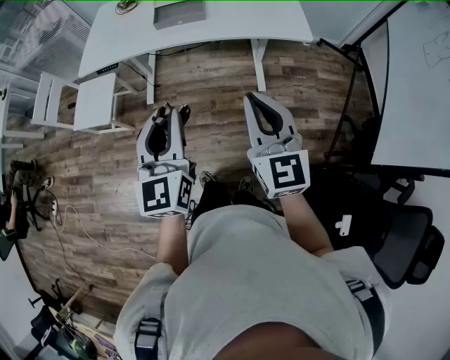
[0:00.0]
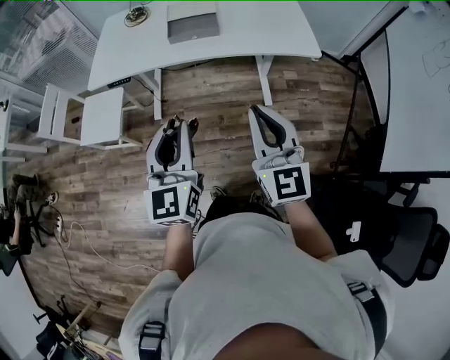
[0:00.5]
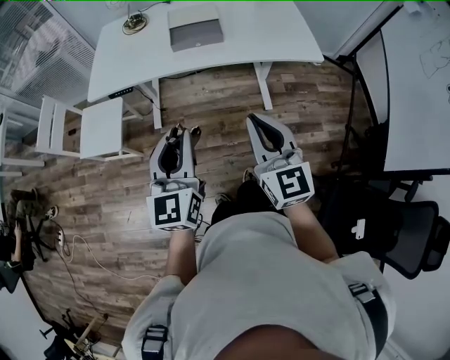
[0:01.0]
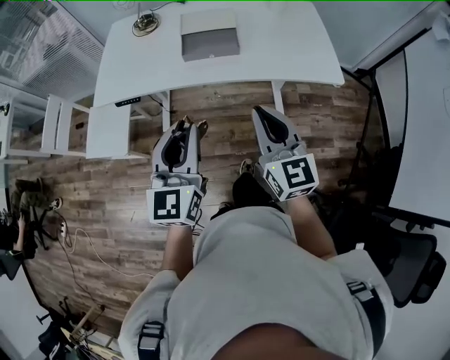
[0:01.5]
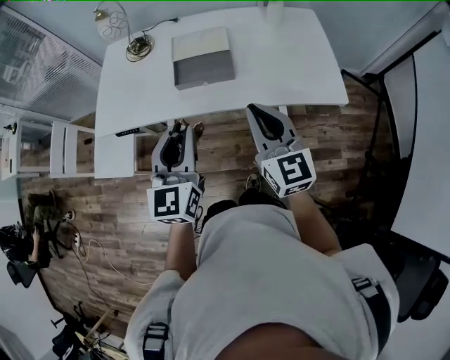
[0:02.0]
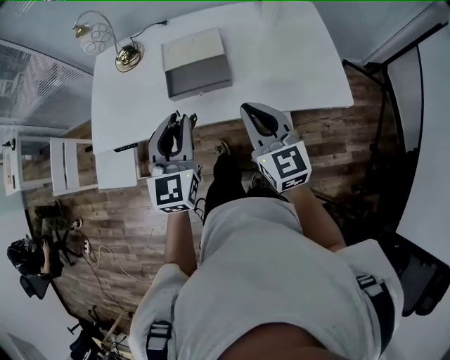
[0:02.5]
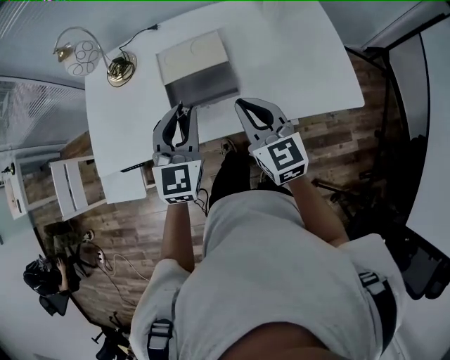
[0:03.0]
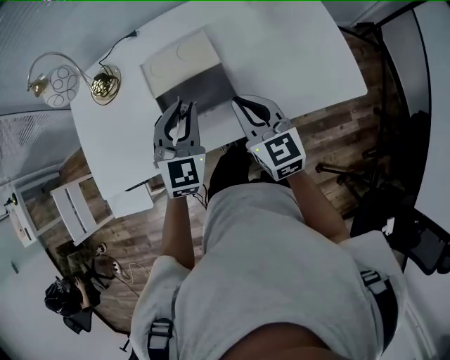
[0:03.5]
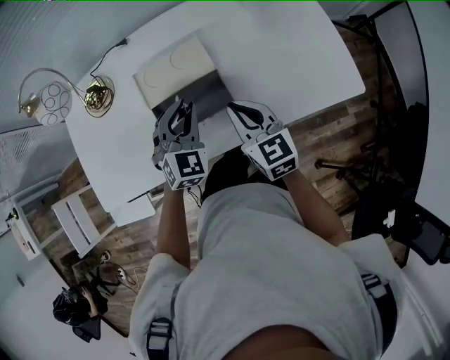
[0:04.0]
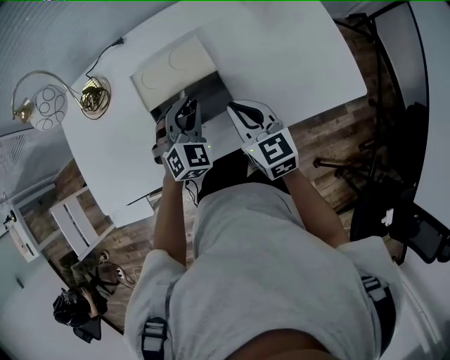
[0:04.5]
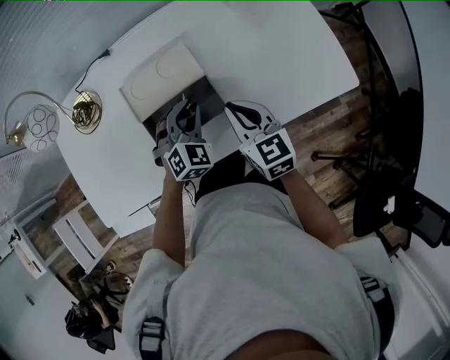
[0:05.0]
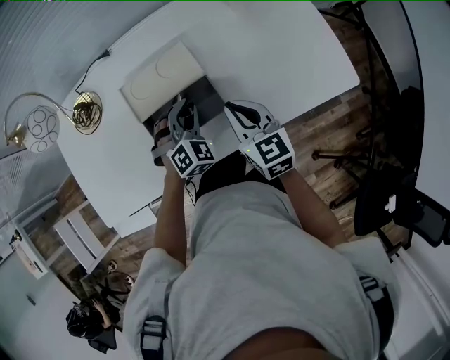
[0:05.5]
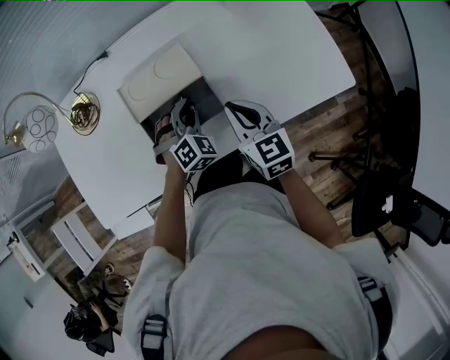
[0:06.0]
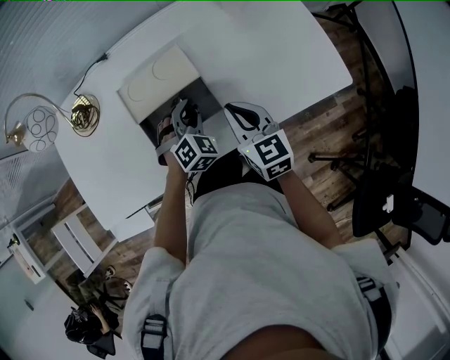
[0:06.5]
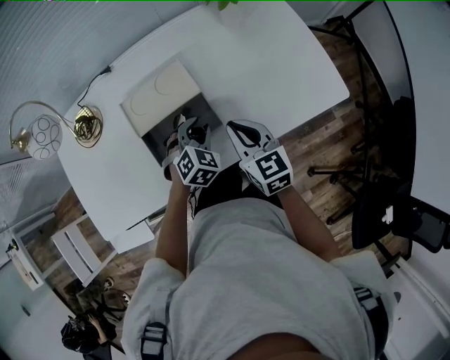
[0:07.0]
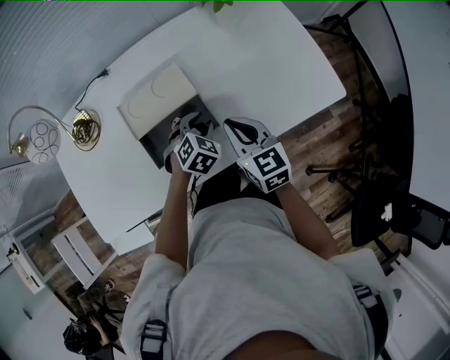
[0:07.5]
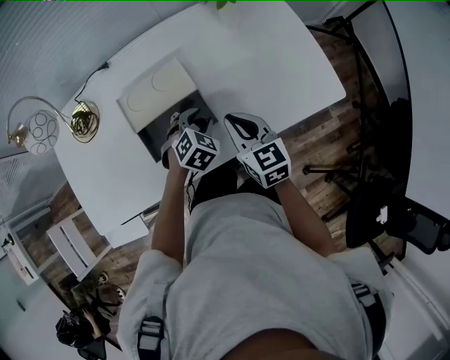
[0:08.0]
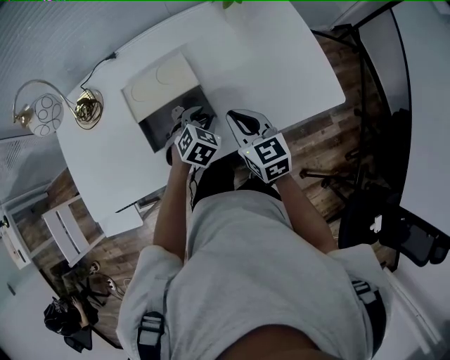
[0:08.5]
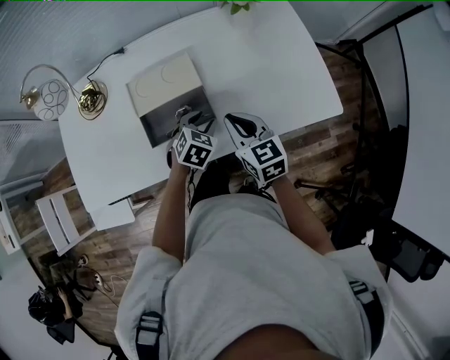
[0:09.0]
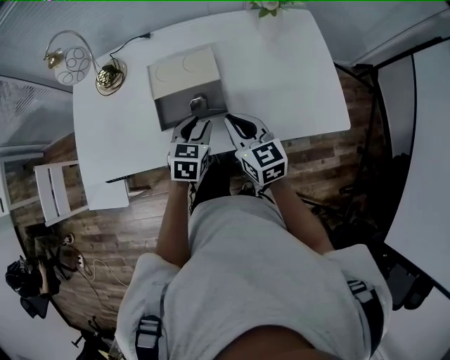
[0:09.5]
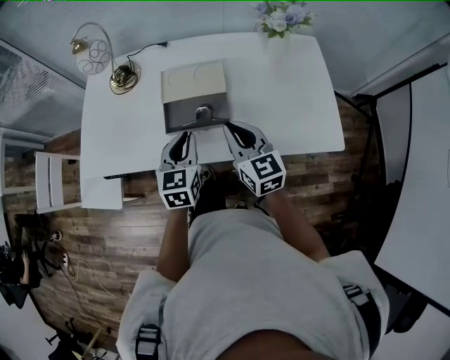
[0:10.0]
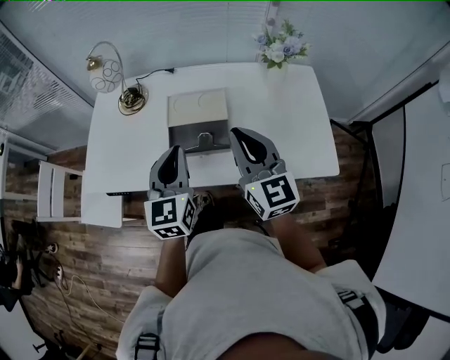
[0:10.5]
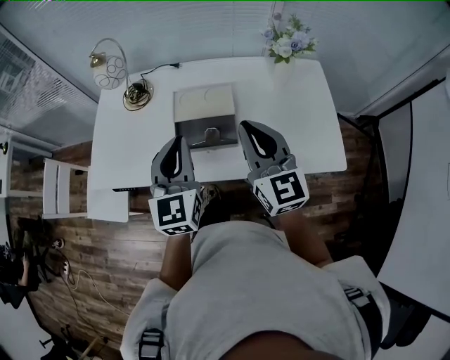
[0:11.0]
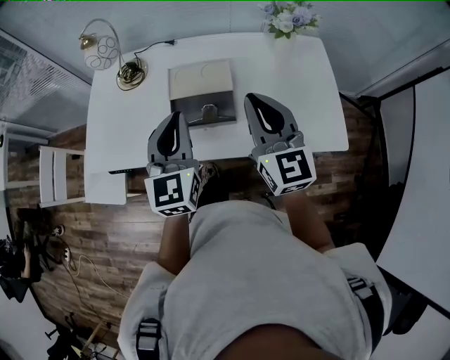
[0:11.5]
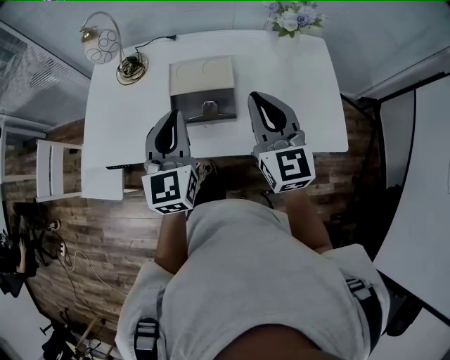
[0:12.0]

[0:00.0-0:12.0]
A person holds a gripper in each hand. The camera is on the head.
0:00.0 to 0:02.0: Both grippers move forward, about 30 cm.
0:02.0 to 0:04.0: Both grippers travel together forward and downward, approximately 30 cm. The left gripper changes its angle by approximately 50 degrees. The right gripper changes its angle by roughly 20 degrees.
0:04.0 to 0:06.0: The left gripper heads downward, covering approximately 10 cm, and turns by about 20 degrees.
0:06.0 to 0:08.0: The left gripper shifts about 5 cm to the right, and swivels about 20 degrees.
0:08.0 to 0:10.0: The left gripper heads upward, to the left and backward, covering approximately 20 cm, tips its fingers upward by some 30 degrees, and closes up; the right gripper moves upward, approximately 10 cm, and rotates approximately 20 degrees.
0:10.0 to 0:12.0: The grippers both shift upward by about 15 cm.

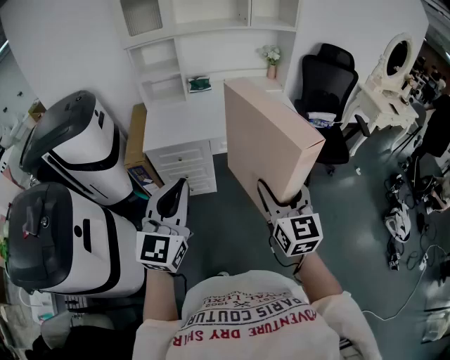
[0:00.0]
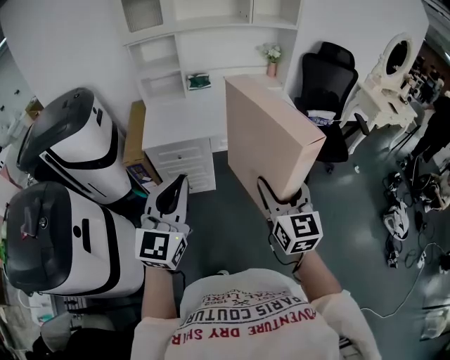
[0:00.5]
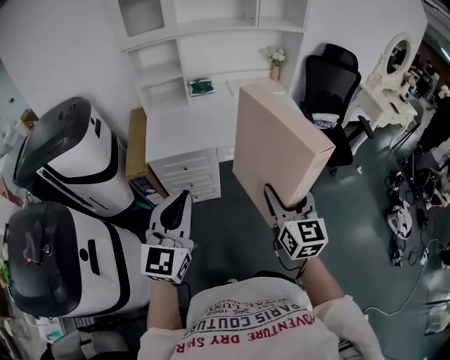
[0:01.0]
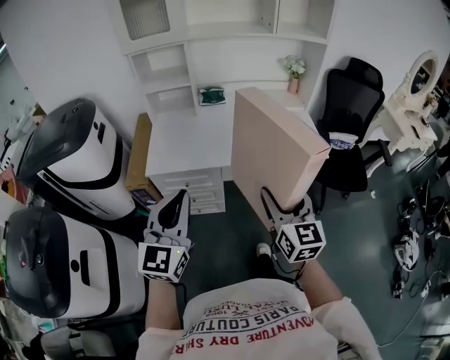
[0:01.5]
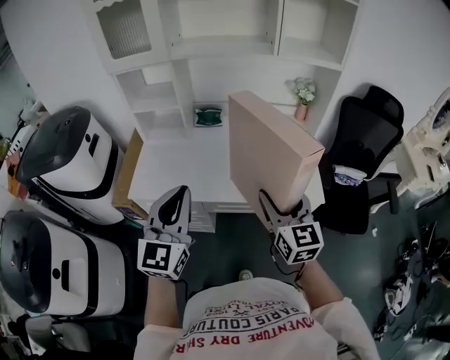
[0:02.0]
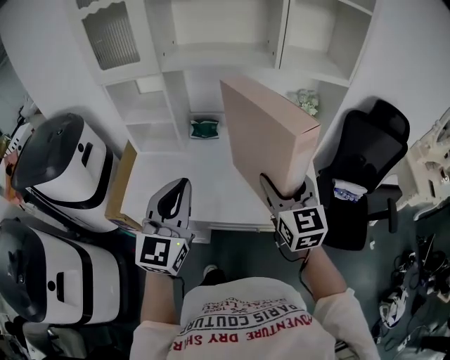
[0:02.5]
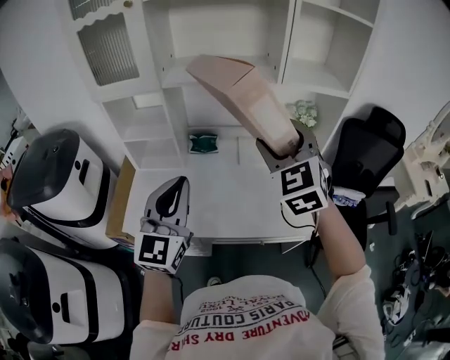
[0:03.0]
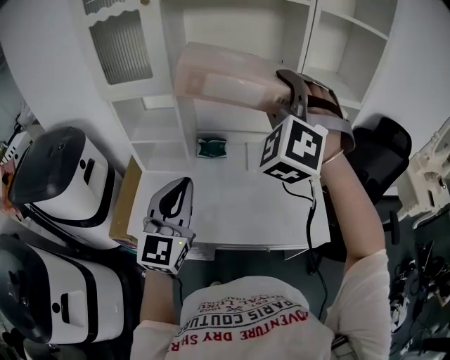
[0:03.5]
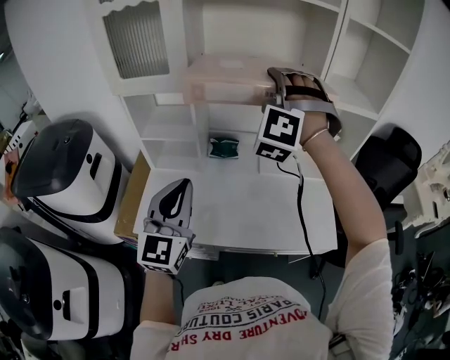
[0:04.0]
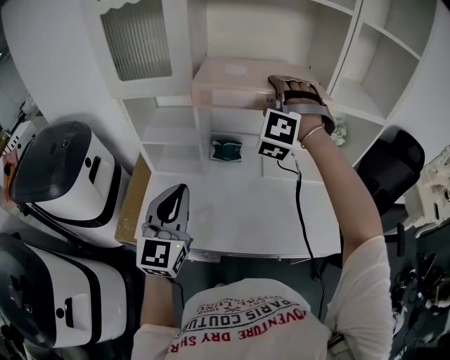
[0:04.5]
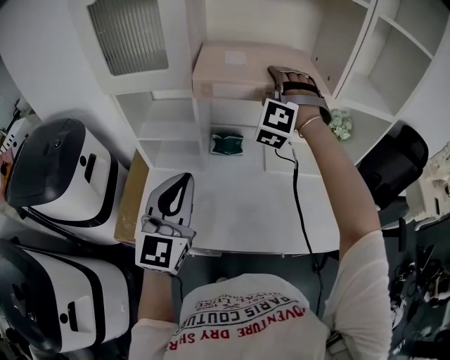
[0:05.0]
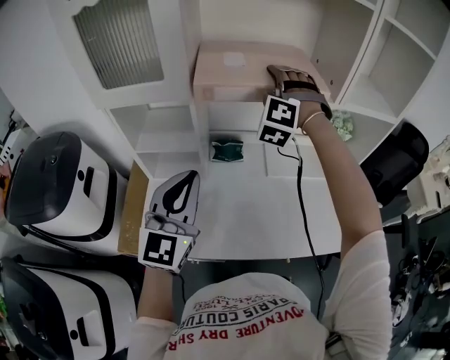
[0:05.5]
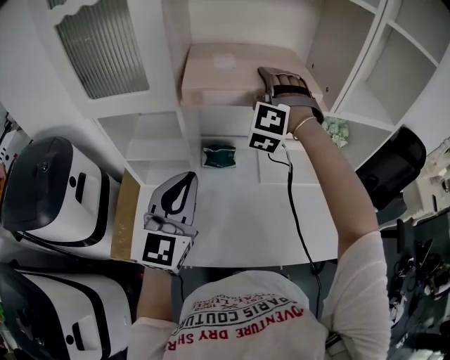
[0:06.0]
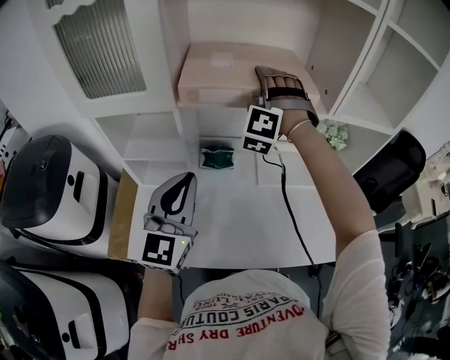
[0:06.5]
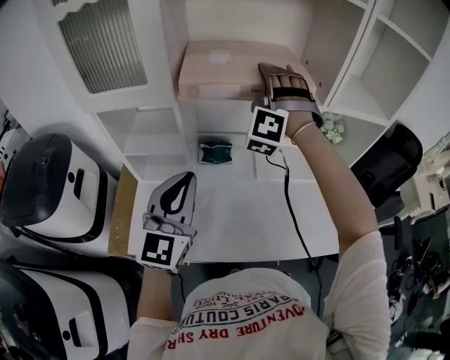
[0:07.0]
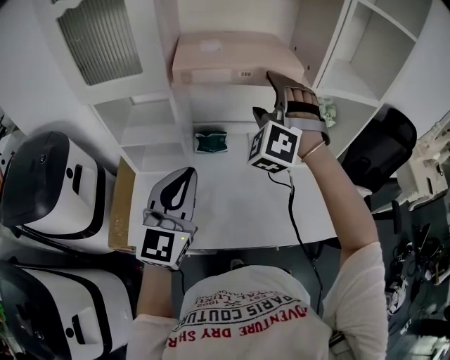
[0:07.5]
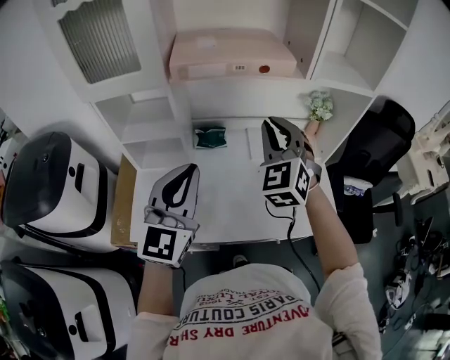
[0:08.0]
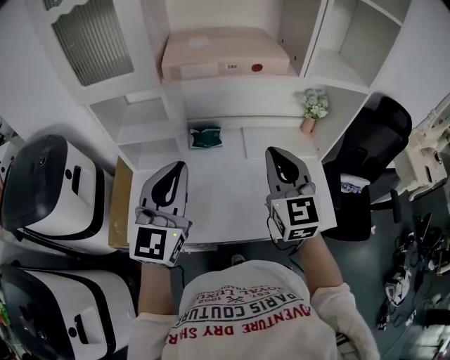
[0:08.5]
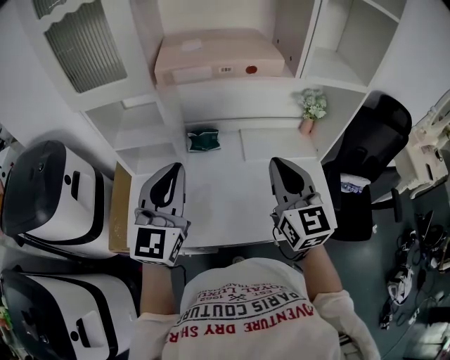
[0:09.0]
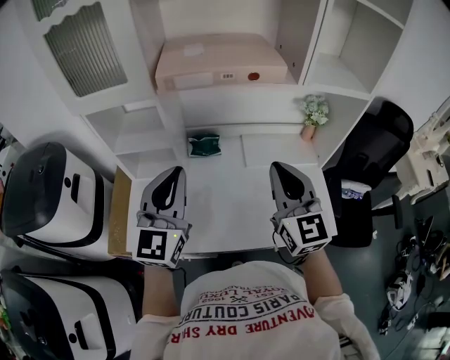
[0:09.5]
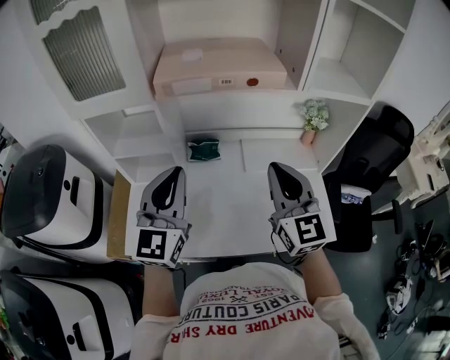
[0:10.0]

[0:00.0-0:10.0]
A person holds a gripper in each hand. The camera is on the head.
0:00.0 to 0:02.0: Both grippers travel together forward, roughly 35 cm.
0:02.0 to 0:04.0: The left gripper shifts some 20 cm forward and to the left; the right gripper heads forward, upward and to the left, covering about 40 cm, and rolls counterclockwise, seen from behind, by roughly 90 degrees.
0:04.0 to 0:06.0: The right gripper travels forward and downward by approximately 20 cm; the left gripper is displaced forward by approximately 10 cm.
0:06.0 to 0:08.0: The right gripper travels backward and to the right by about 20 cm, rolls clockwise, seen from behind, by about 50 degrees, and closes. Meanwhile the left gripper is displaced backward by some 5 cm.
0:08.0 to 0:10.0: The right gripper moves backward, approximately 5 cm, and turns by some 40 degrees.

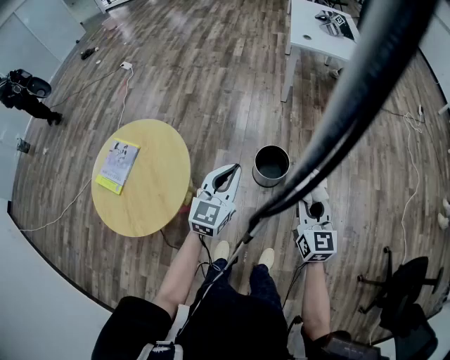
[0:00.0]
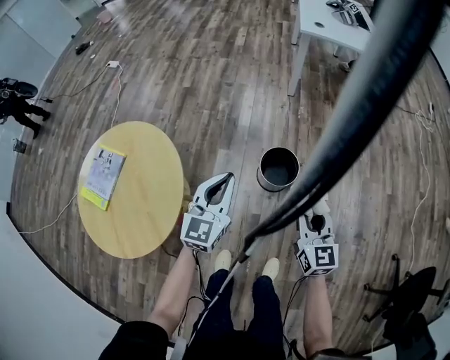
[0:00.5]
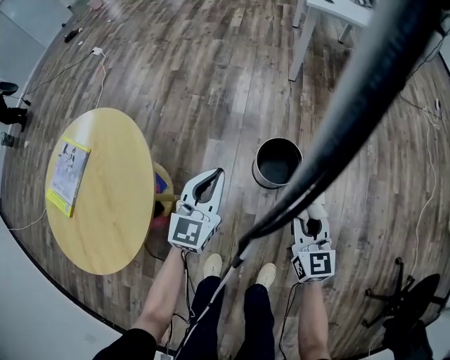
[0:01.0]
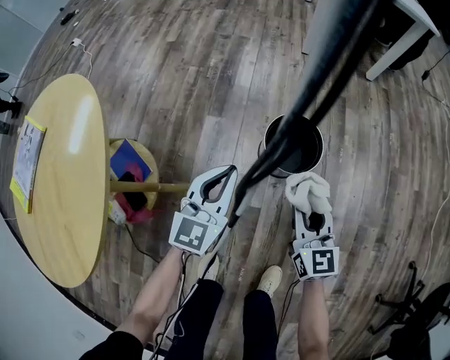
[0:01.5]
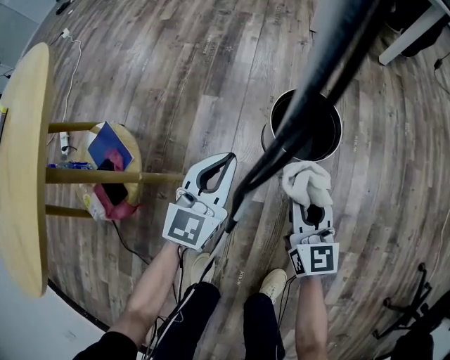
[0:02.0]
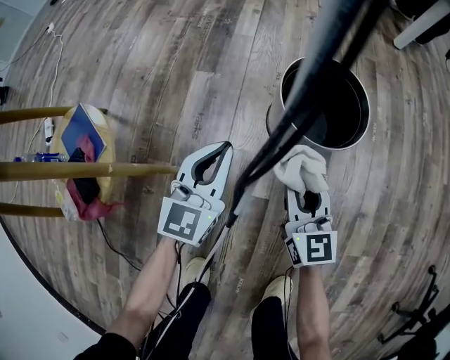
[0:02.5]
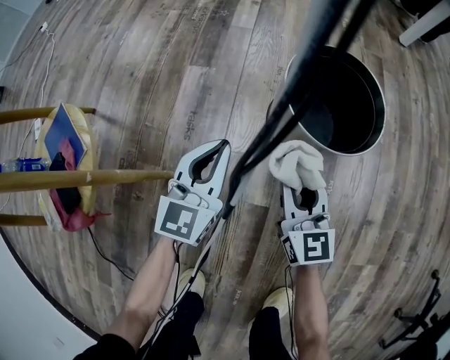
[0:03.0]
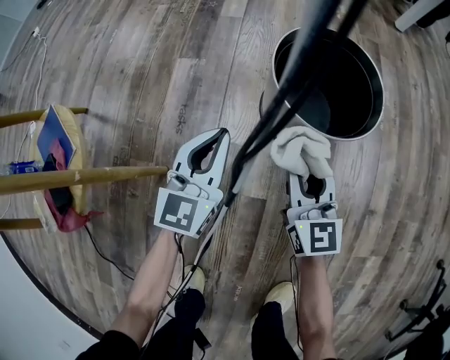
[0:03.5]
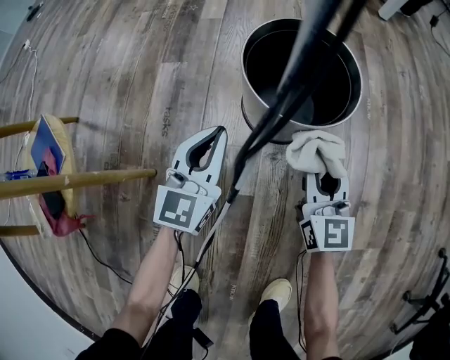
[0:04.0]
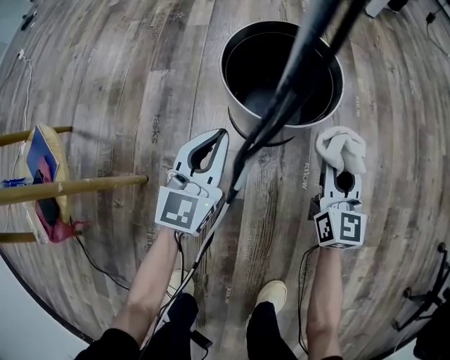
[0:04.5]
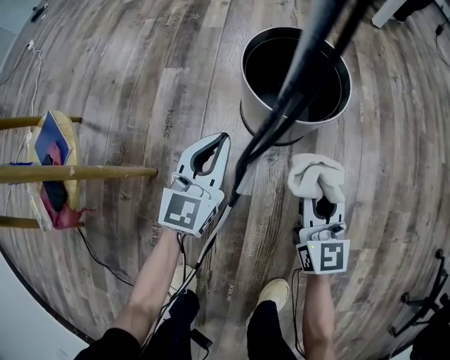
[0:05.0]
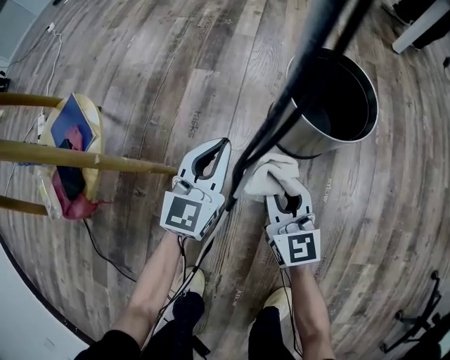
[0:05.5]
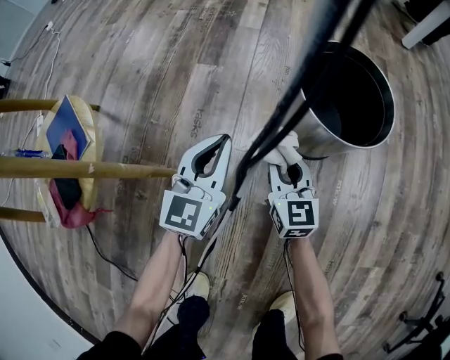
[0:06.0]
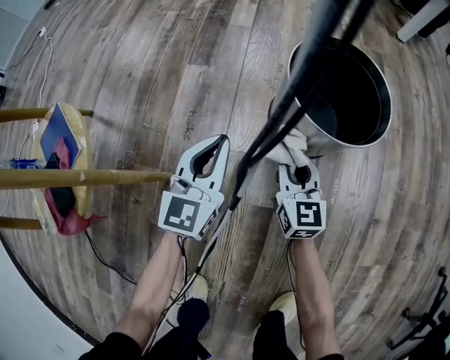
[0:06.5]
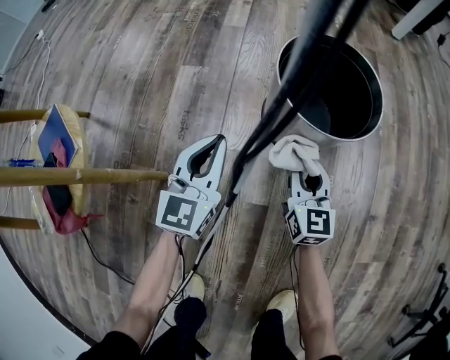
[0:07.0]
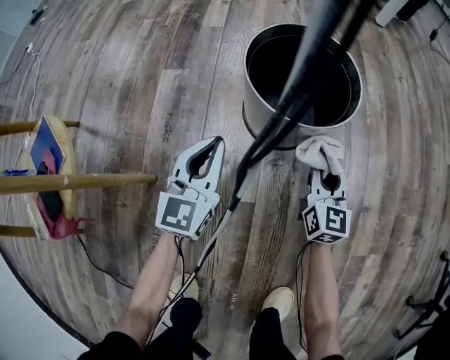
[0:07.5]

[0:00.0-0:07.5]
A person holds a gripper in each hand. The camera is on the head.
0:00.0 to 0:02.0: Both grippers move downward, some 50 cm.
0:02.0 to 0:04.0: Both grippers travel together downward, some 20 cm.
0:04.0 to 0:05.5: The left gripper moves to the left, some 5 cm, while the right gripper travels to the left and backward by about 15 cm.
0:05.5 to 0:07.5: The left gripper heads to the right, covering approximately 5 cm; the right gripper is displaced to the right by some 20 cm, and swivels about 30 degrees.
